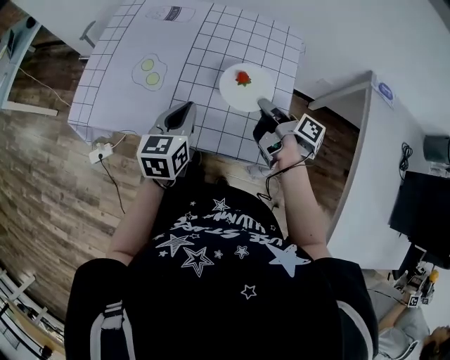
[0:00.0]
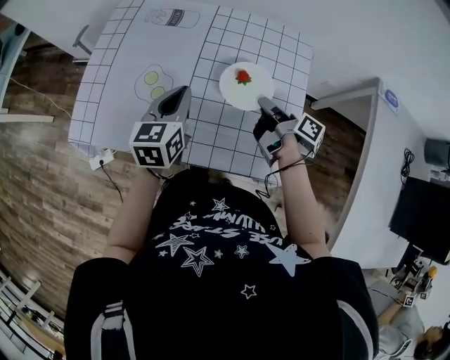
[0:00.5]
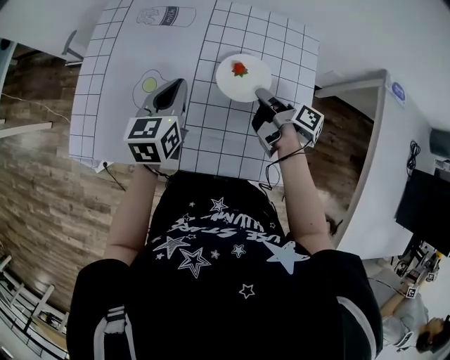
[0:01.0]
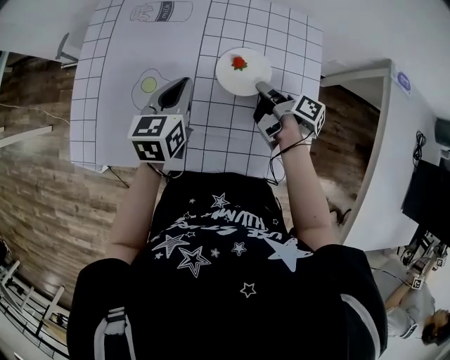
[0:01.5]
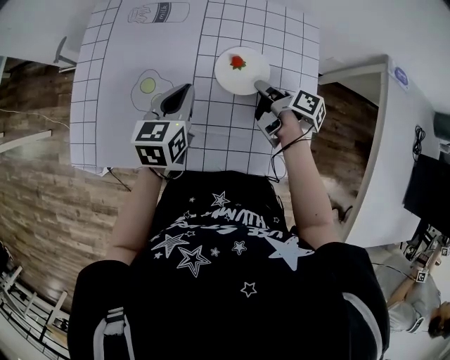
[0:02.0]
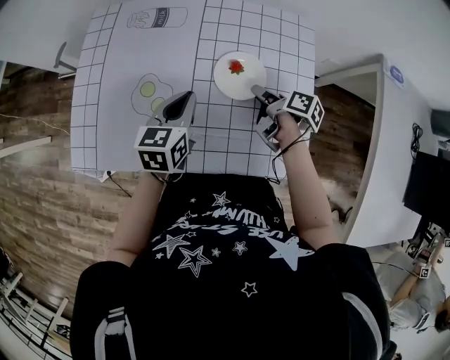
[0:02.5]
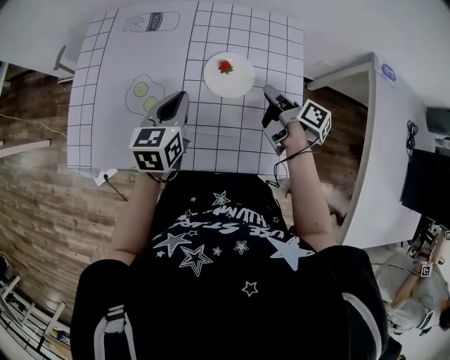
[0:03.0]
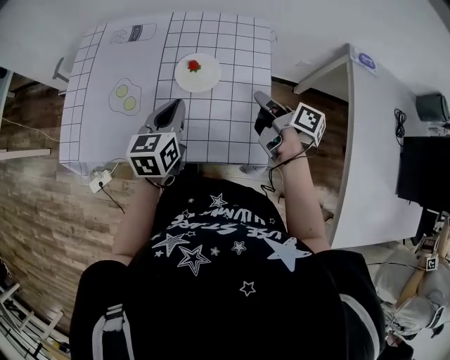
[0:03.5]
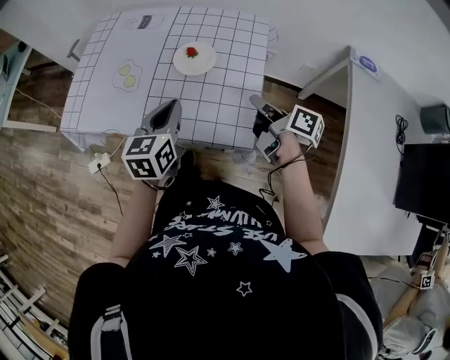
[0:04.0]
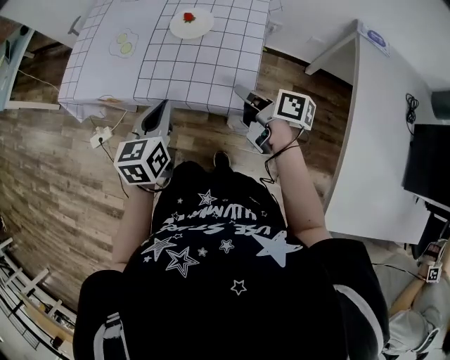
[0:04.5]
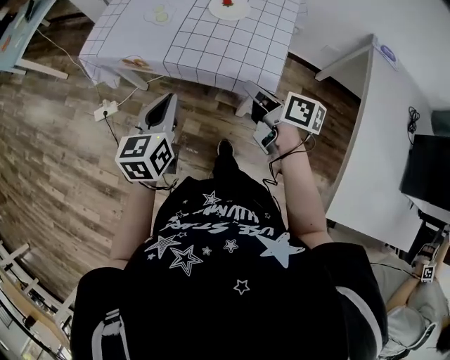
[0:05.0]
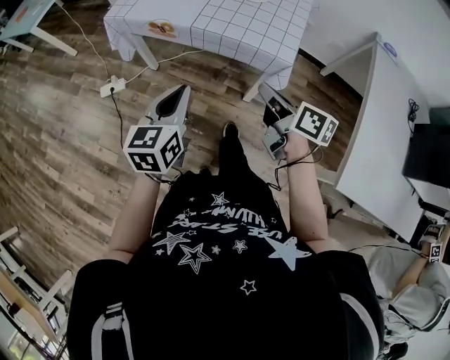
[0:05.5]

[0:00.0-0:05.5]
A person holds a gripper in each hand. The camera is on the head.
0:00.0 to 0:02.0: The left gripper shifts by roughly 15 cm.
0:02.0 to 0:03.5: The left gripper shifts by about 15 cm.
0:03.5 to 0:05.5: The left gripper ends up approximately 40 cm from where it was.

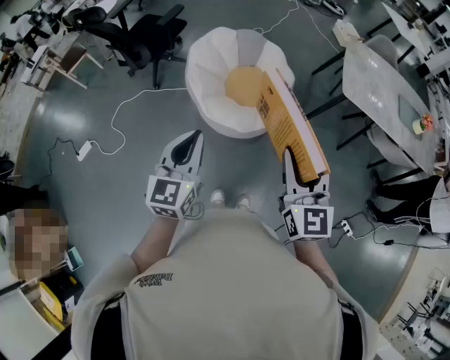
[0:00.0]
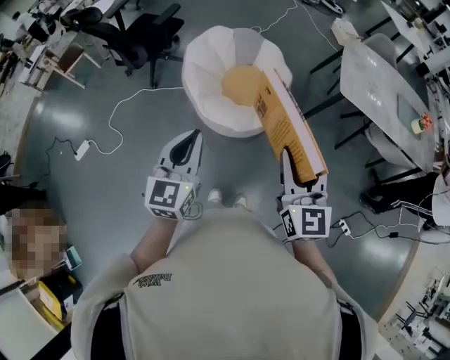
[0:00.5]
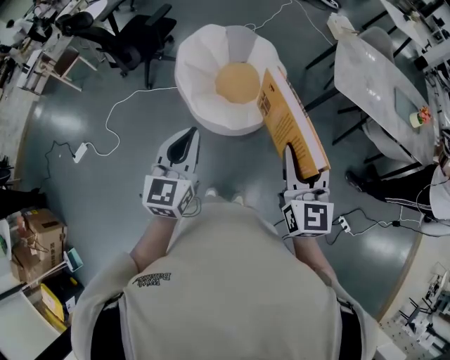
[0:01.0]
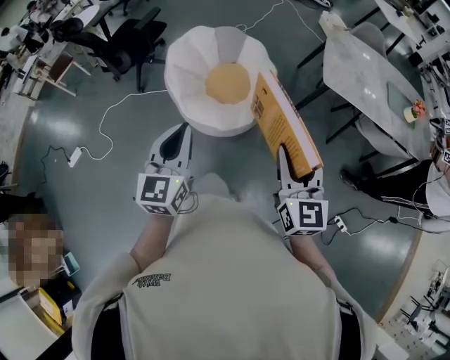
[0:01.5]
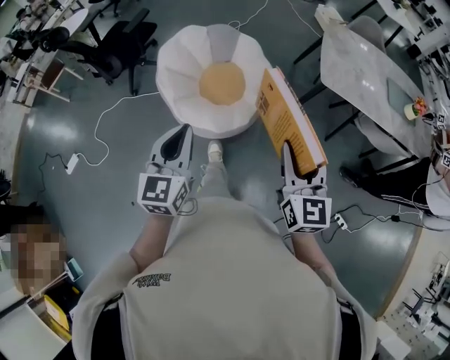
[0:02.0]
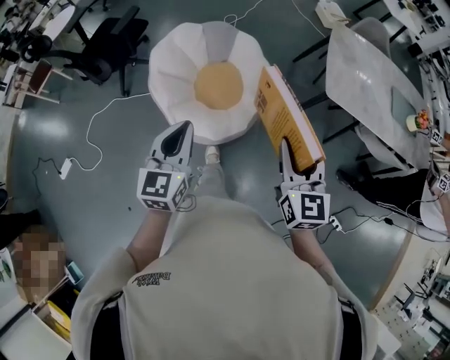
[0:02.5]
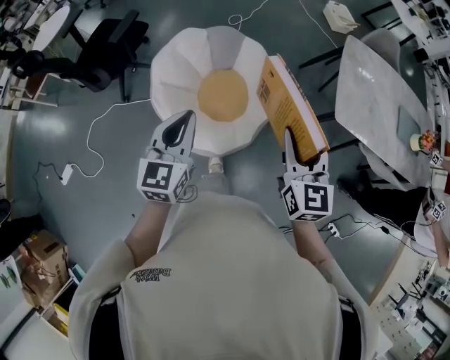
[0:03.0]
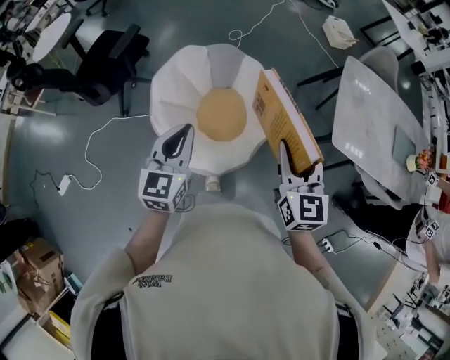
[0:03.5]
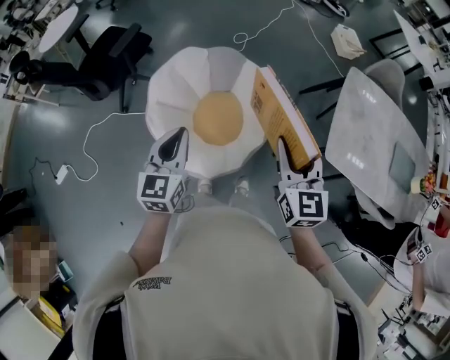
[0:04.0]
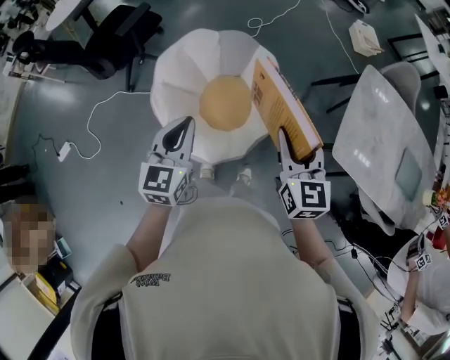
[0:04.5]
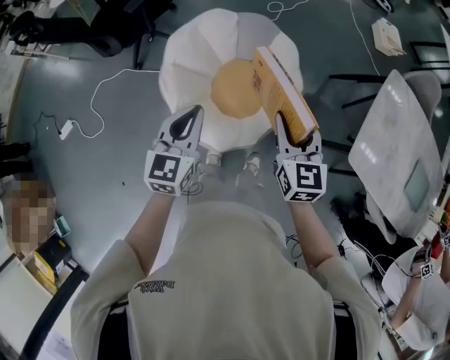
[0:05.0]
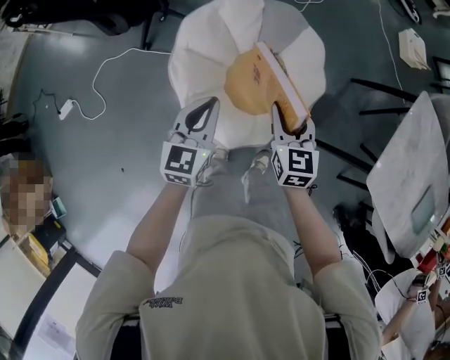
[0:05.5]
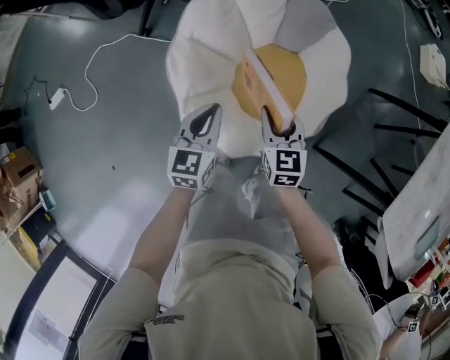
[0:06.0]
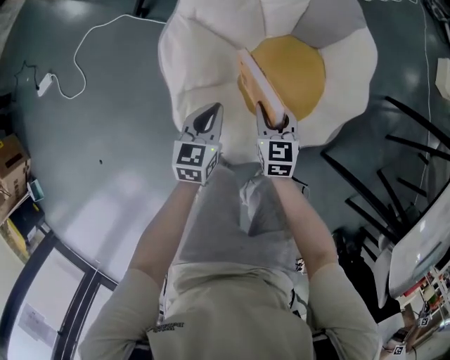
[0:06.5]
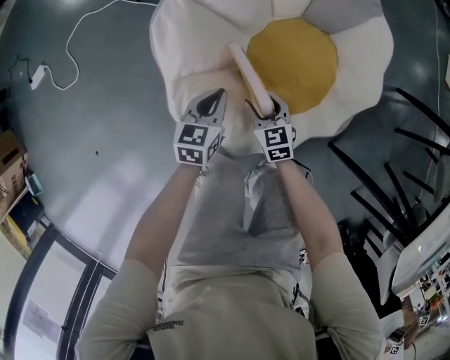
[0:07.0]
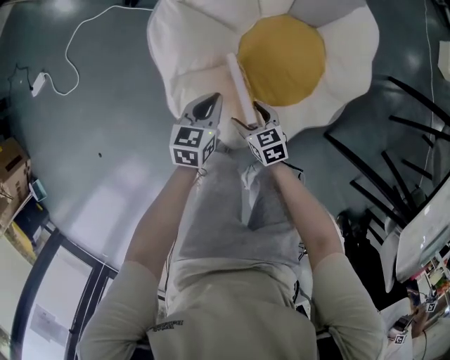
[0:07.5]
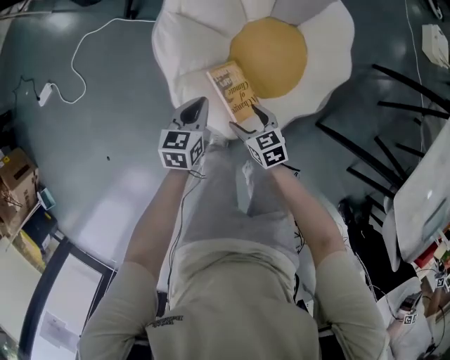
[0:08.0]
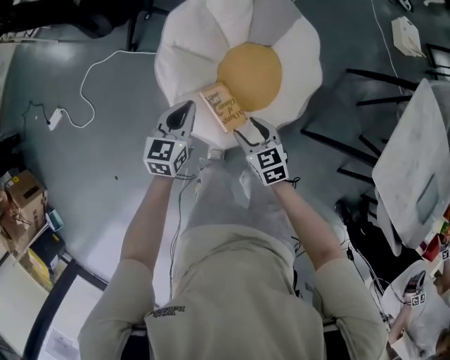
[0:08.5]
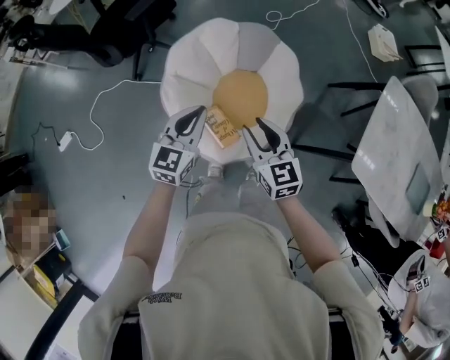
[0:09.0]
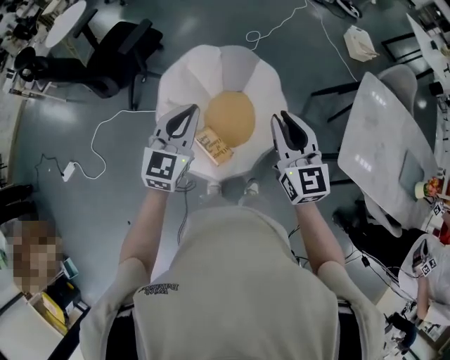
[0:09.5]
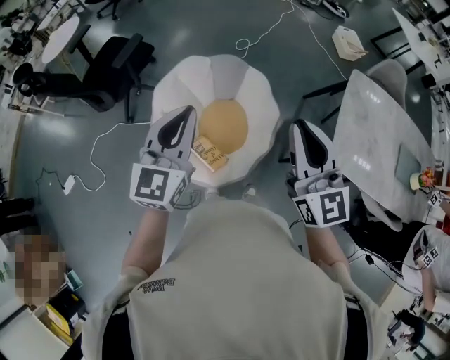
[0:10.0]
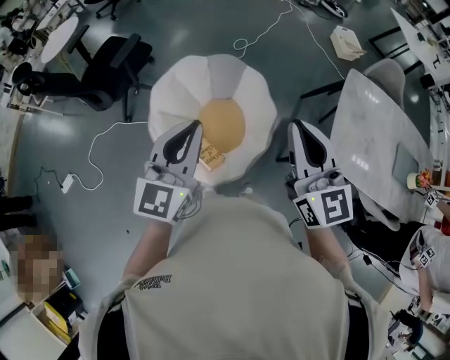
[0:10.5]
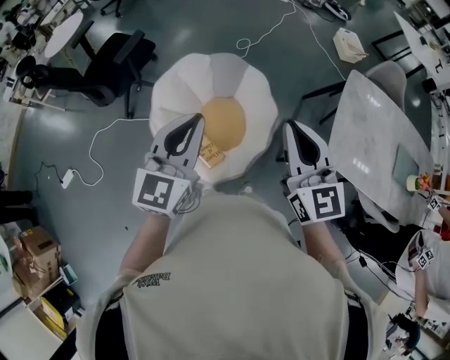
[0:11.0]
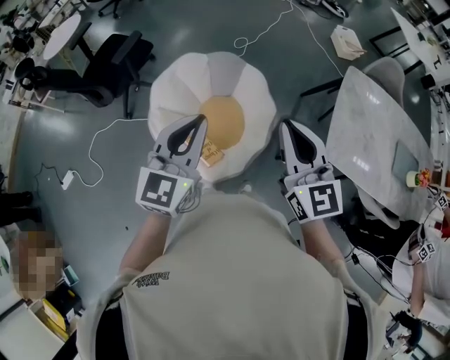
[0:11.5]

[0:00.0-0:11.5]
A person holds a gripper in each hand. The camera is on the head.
0:00.0 to 0:02.0: The right gripper is displaced to the right, forward and downward by roughly 15 cm, while the left gripper heads to the right and forward, covering some 15 cm.
0:02.0 to 0:04.0: The grippers both shift forward by about 40 cm.
0:04.0 to 0:06.0: The left gripper travels downward by some 35 cm; the right gripper goes about 50 cm downward and to the left, and changes its angle by about 30 degrees.
0:06.0 to 0:07.5: Both grippers move downward, approximately 25 cm. The right gripper turns by about 30 degrees, and opens up.
0:07.5 to 0:09.5: Both grippers travel together upward, some 70 cm. The left gripper swivels approximately 40 degrees. Meanwhile the right gripper points its fingers about 40 degrees further upward, and closes up.
0:09.5 to 0:11.5: The grippers both shift upward, to the right and backward by some 15 cm.

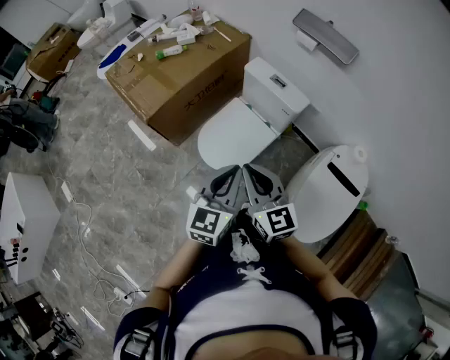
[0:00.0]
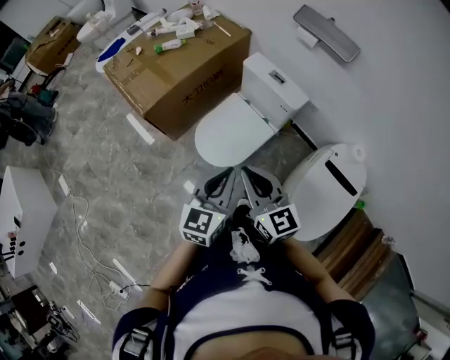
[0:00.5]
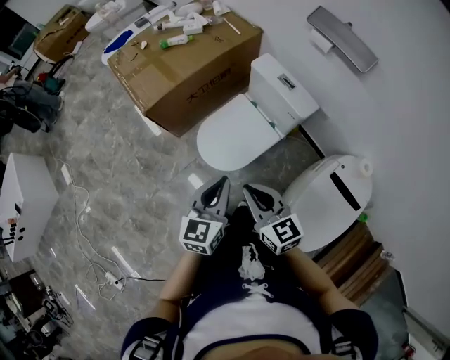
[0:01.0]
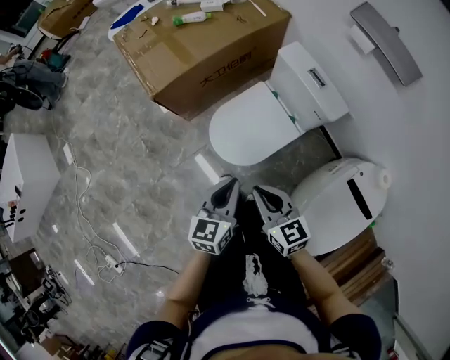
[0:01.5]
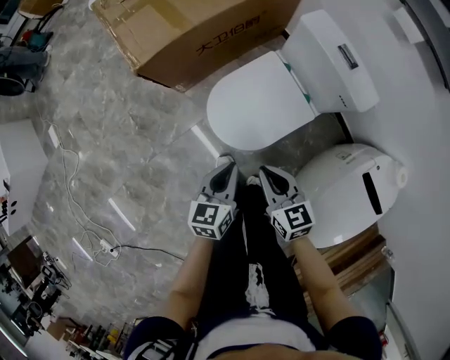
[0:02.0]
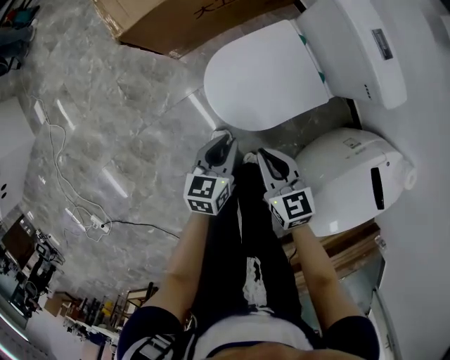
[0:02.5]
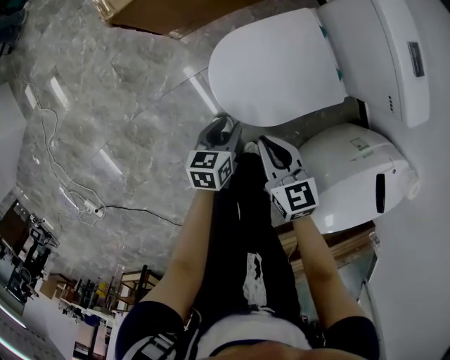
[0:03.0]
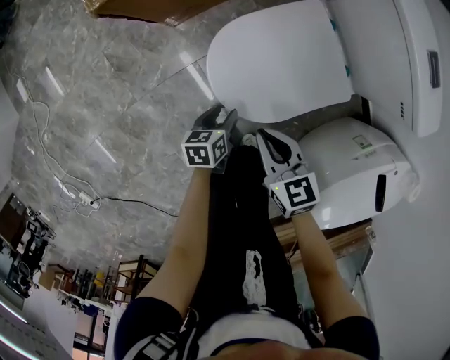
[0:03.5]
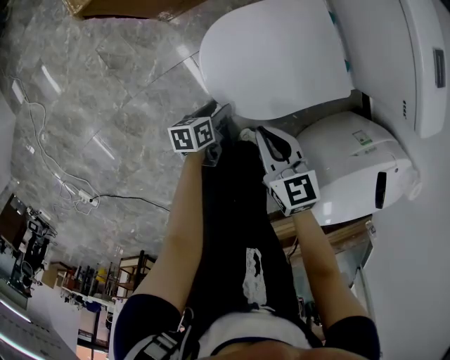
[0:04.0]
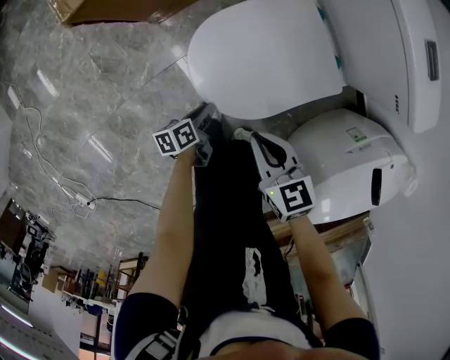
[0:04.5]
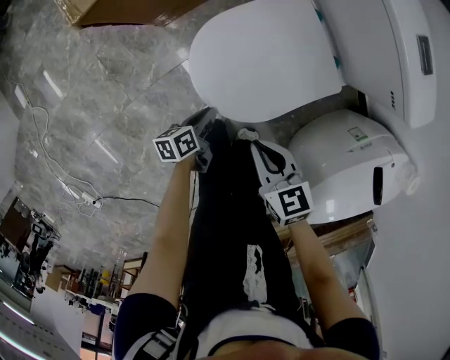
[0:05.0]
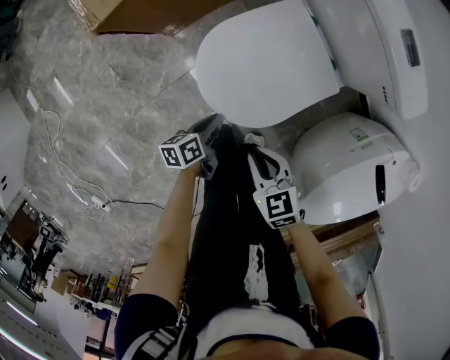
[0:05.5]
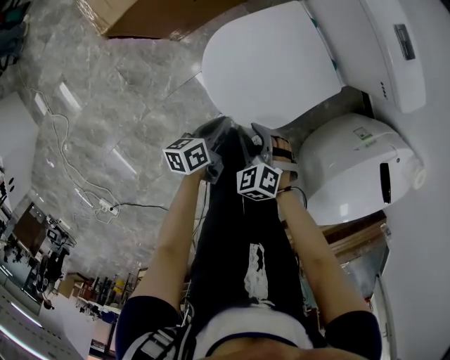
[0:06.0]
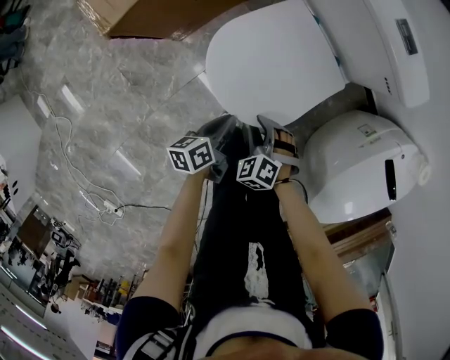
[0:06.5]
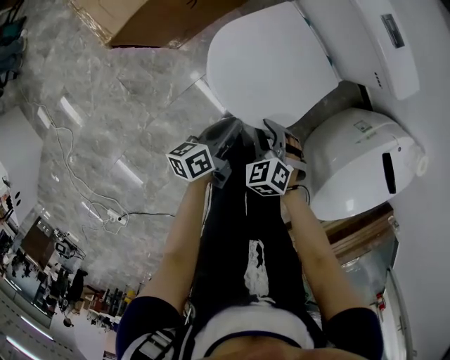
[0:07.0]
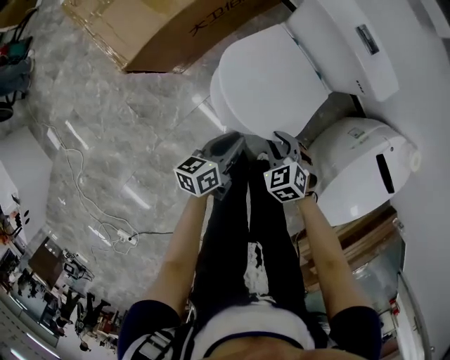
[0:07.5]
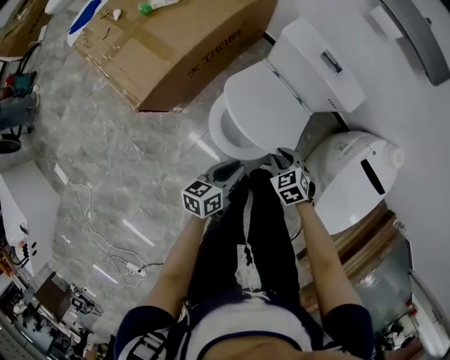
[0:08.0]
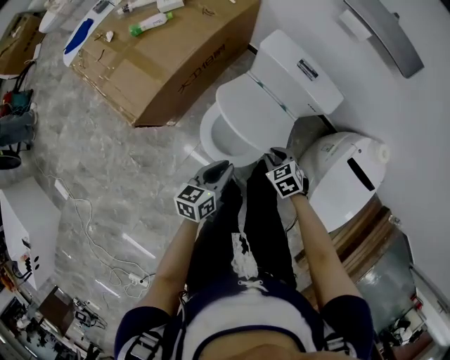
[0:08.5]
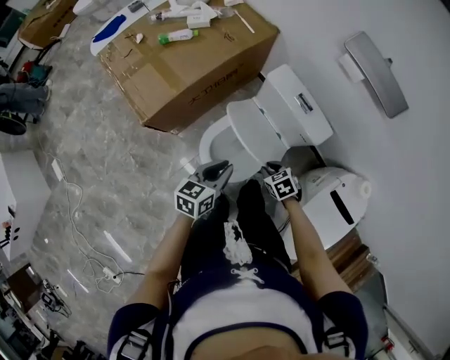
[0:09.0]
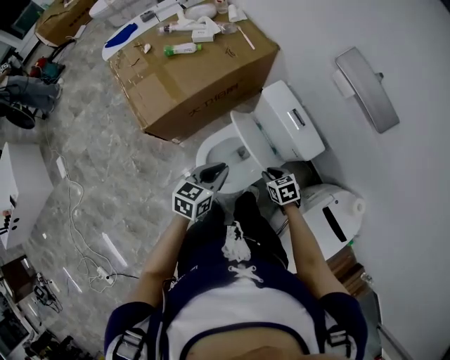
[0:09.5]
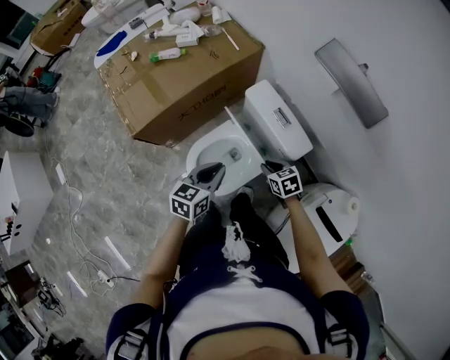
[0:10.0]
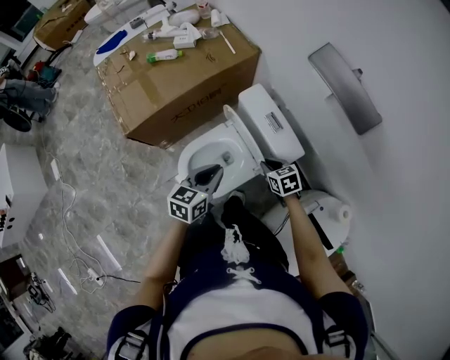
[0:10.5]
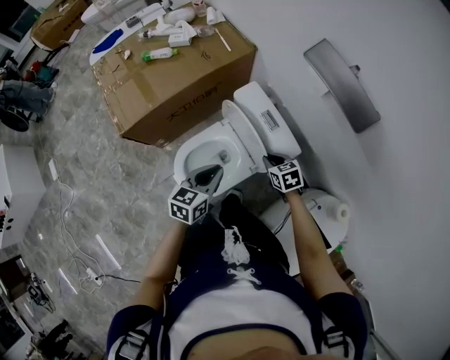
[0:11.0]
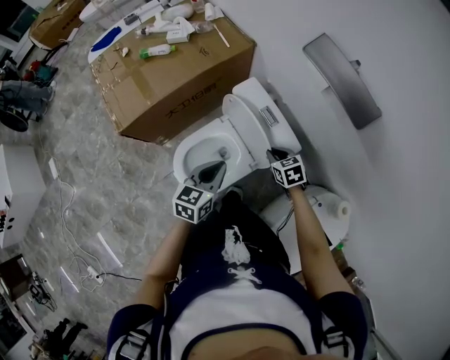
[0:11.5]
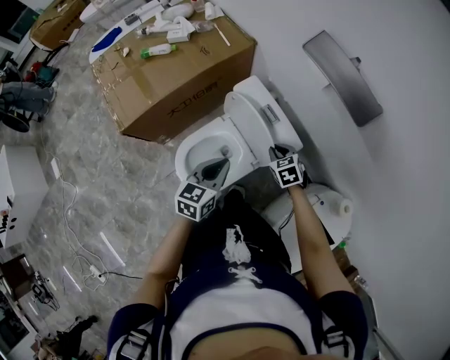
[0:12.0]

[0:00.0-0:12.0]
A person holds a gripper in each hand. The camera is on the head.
0:00.0 to 0:02.0: Both grippers move downward, some 30 cm. The right gripper turns by about 30 degrees. Meanwhile the left gripper rotates some 30 degrees.
0:02.0 to 0:04.0: The right gripper shifts about 15 cm downward. The left gripper shifts about 35 cm downward, swivels approximately 40 degrees, and opens up.
0:04.0 to 0:06.0: The left gripper travels upward by about 15 cm, and closes up. The right gripper ends up some 5 cm from where it was, rotates approximately 40 degrees, and opens.
0:06.0 to 0:08.0: The left gripper travels upward by about 20 cm, and rotates some 30 degrees. The right gripper travels upward, forward and to the right by about 15 cm, and turns by roughly 30 degrees.
0:08.0 to 0:10.0: The right gripper goes roughly 20 cm to the right, forward and upward, while the left gripper shifts roughly 20 cm upward, forward and to the right, and rotates some 20 degrees.
0:10.0 to 0:12.0: The right gripper is displaced to the right and forward by approximately 10 cm. The left gripper goes roughly 5 cm to the right.
